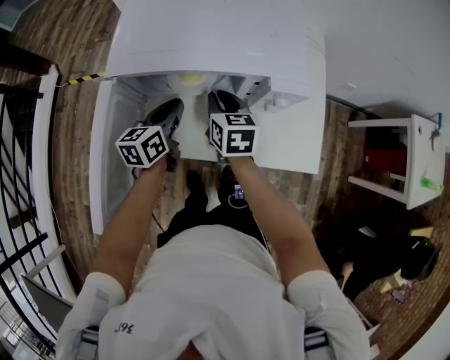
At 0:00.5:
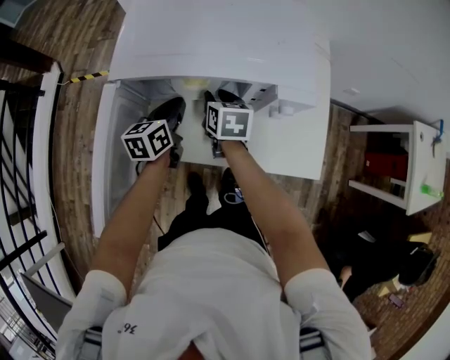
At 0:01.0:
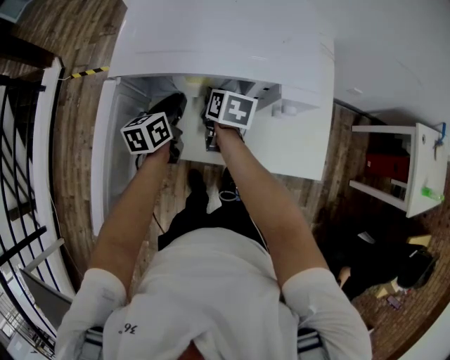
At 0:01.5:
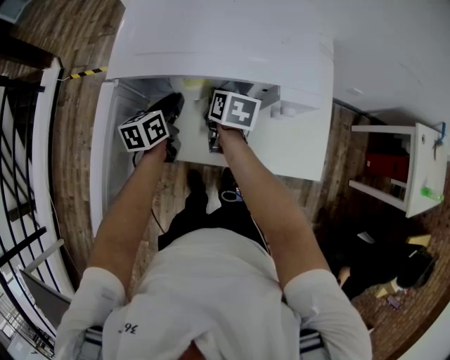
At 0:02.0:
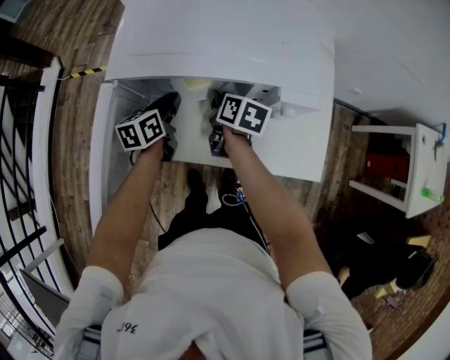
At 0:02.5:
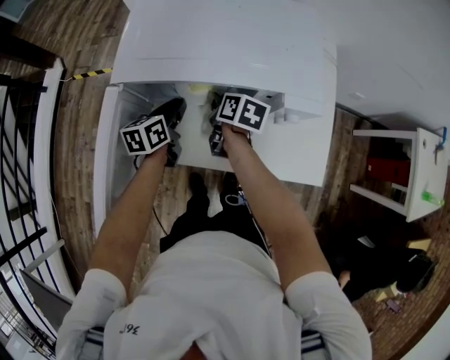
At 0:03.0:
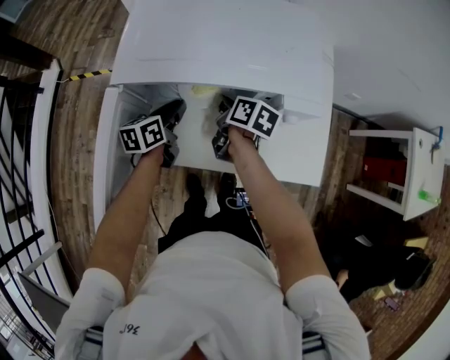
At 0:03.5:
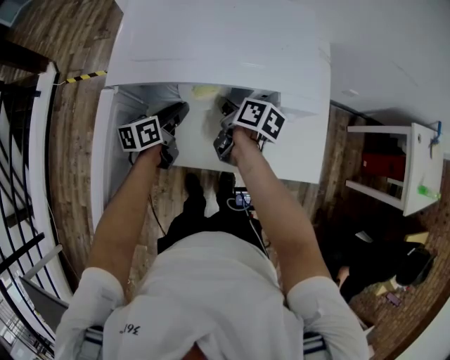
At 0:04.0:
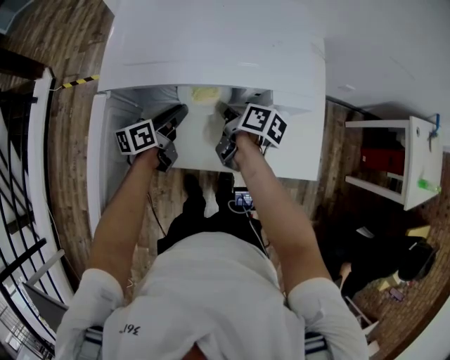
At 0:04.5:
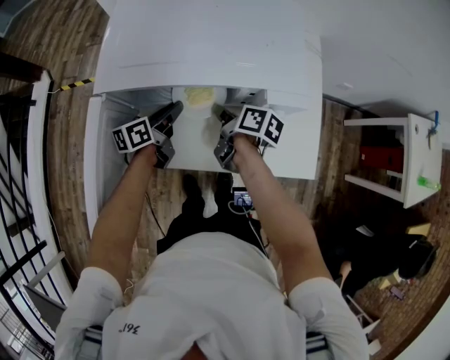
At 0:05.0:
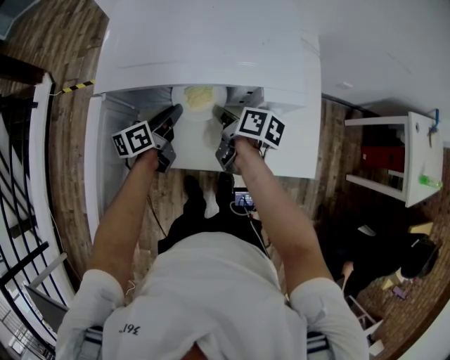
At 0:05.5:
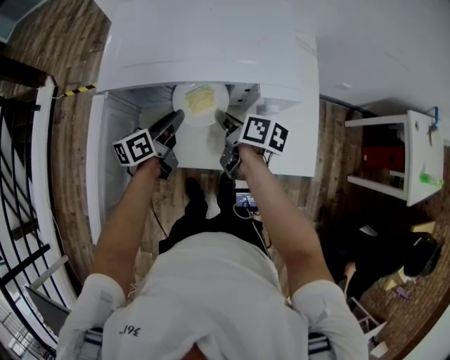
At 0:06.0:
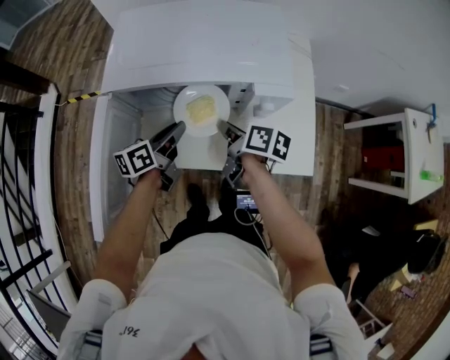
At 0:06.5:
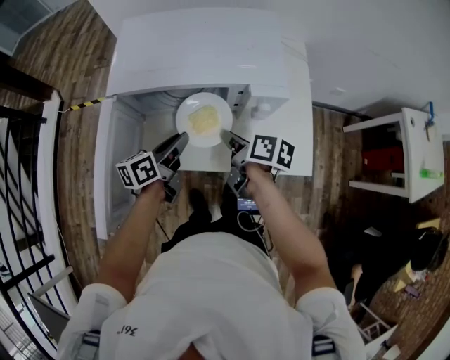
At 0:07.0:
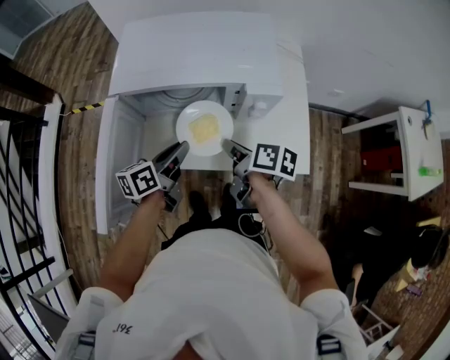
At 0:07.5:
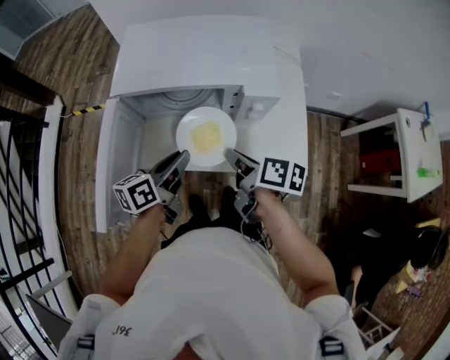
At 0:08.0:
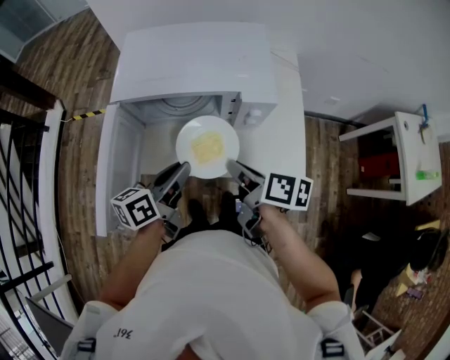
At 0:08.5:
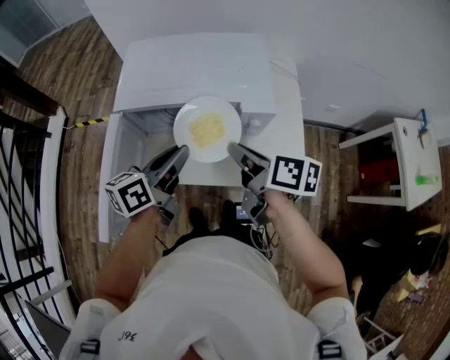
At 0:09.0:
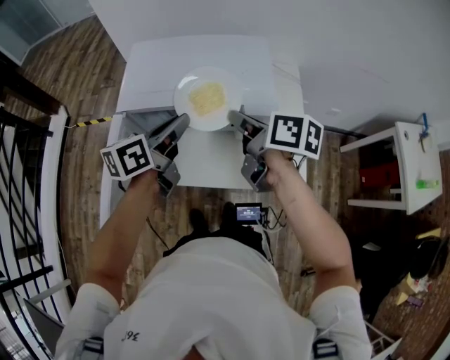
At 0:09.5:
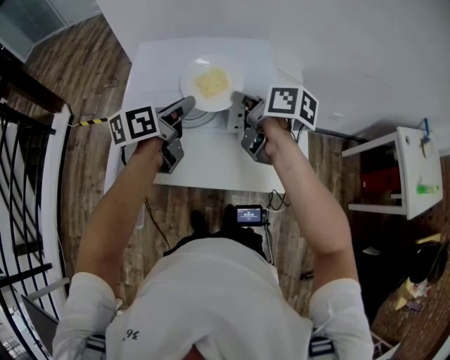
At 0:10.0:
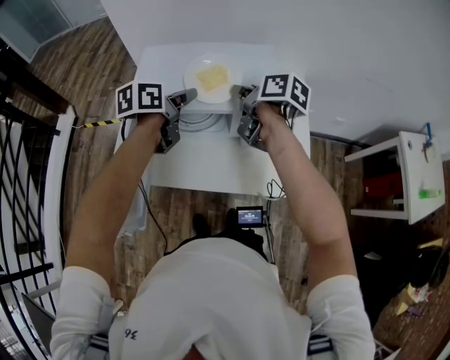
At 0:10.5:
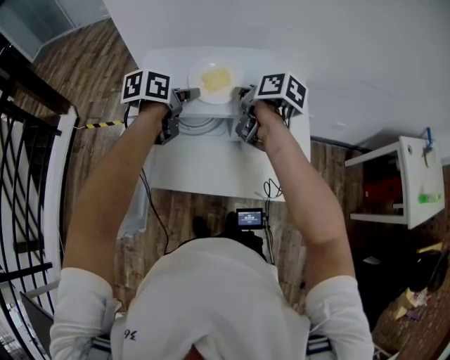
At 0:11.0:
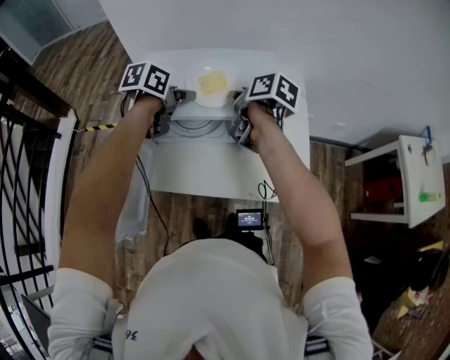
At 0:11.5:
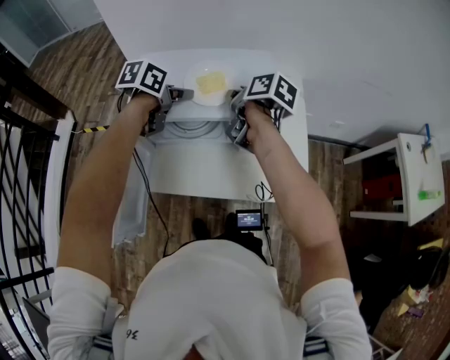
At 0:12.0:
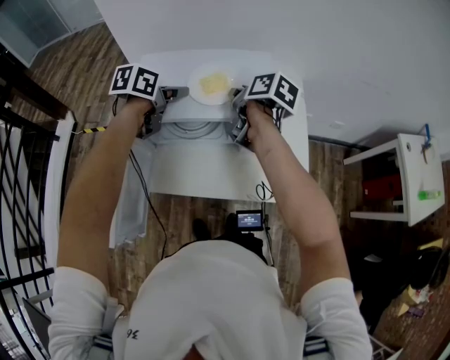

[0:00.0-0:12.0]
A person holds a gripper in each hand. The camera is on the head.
0:00.0 to 0:02.0: Both grippers travel together downward, some 5 cm. The right gripper swivels roughly 30 degrees.
0:02.0 to 0:04.0: The right gripper turns by roughly 20 degrees; the left gripper swivels some 20 degrees.
0:04.0 to 0:06.0: Both grippers travel together backward and upward, roughly 10 cm.
0:06.0 to 0:08.0: Both grippers travel together backward and upward, some 15 cm.
0:08.0 to 0:10.0: The two grippers go roughly 20 cm forward.

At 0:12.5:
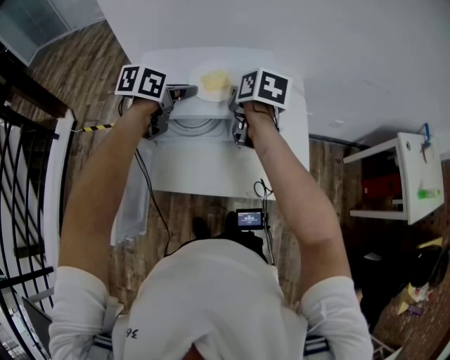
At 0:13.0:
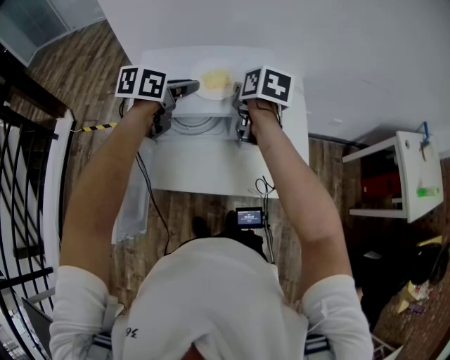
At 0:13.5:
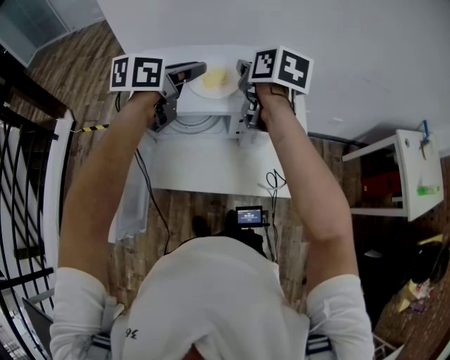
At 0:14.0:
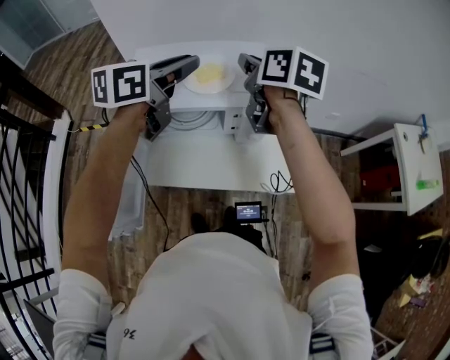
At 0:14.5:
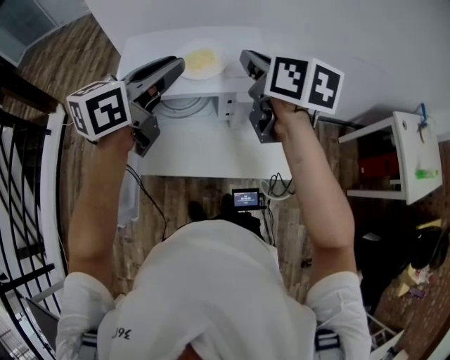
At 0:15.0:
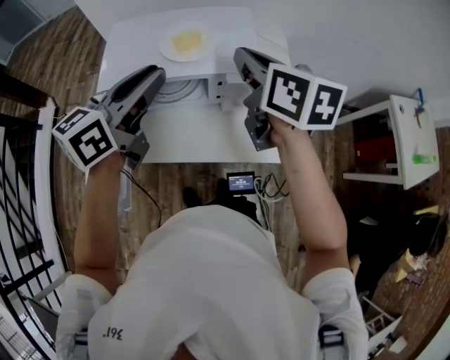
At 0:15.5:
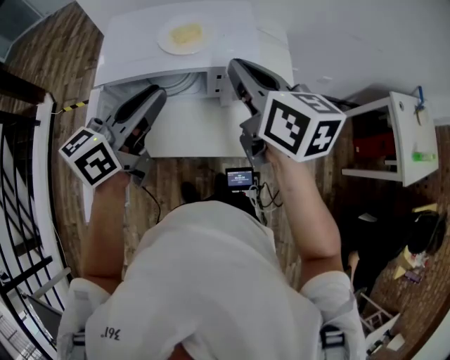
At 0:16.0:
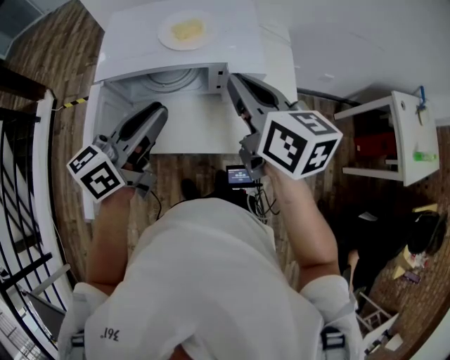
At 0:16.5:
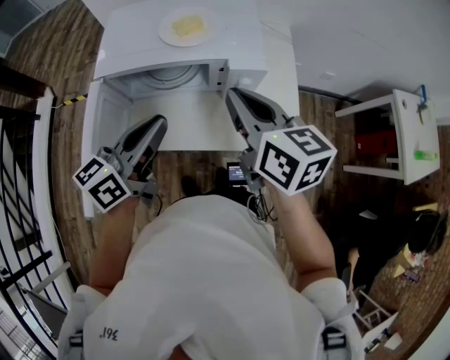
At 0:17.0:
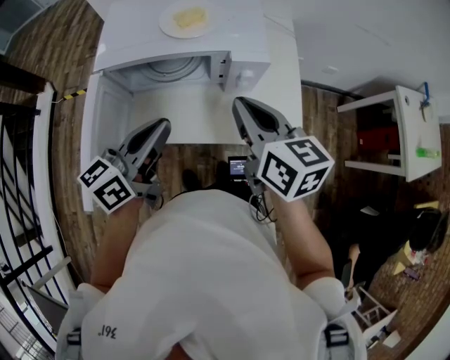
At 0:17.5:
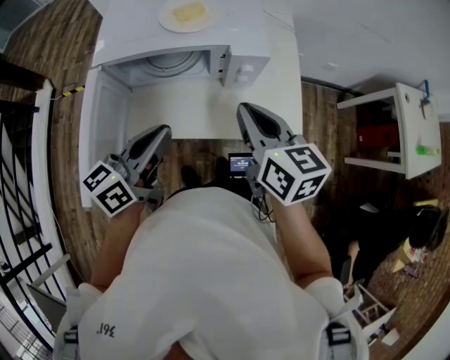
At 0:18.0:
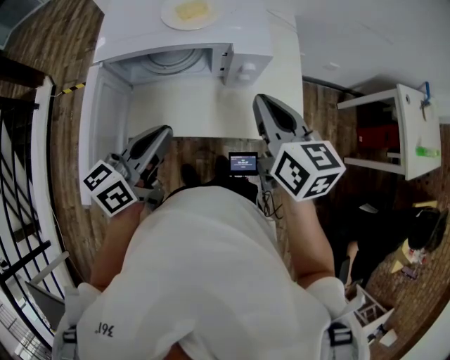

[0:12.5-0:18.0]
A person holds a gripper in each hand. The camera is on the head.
0:12.5 to 0:14.5: The grippers both shift upward and backward by about 15 cm. The left gripper turns by roughly 30 degrees. Meanwhile the right gripper rotates approximately 20 degrees.
0:14.5 to 0:16.0: The left gripper goes approximately 15 cm backward and downward. The right gripper is displaced backward by approximately 10 cm.
0:16.0 to 0:18.0: The right gripper is displaced downward, to the right and backward by roughly 10 cm; the left gripper travels backward and downward by approximately 10 cm.

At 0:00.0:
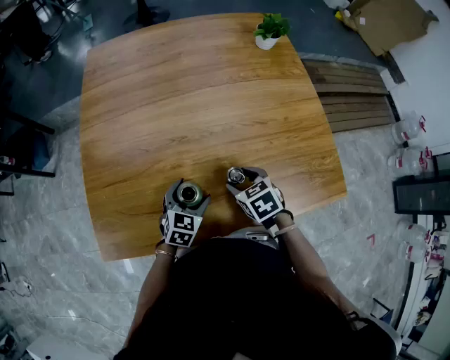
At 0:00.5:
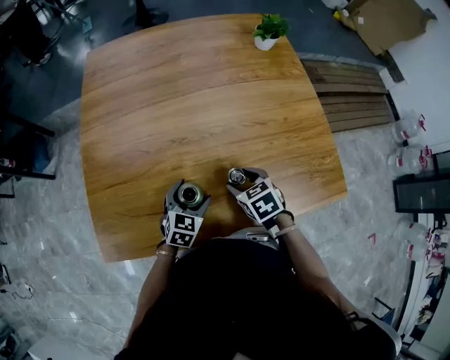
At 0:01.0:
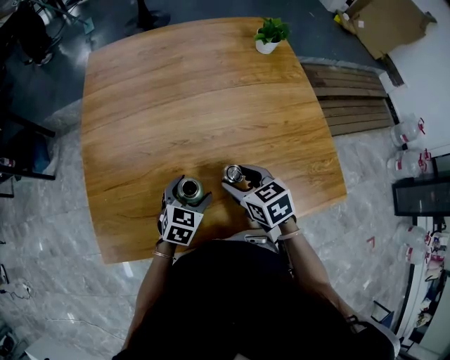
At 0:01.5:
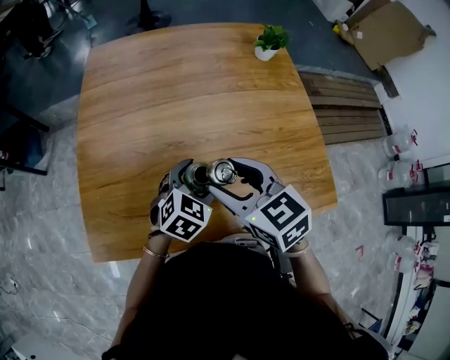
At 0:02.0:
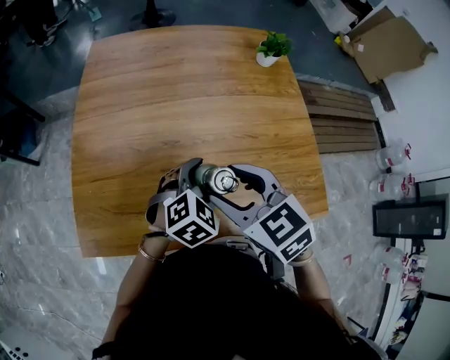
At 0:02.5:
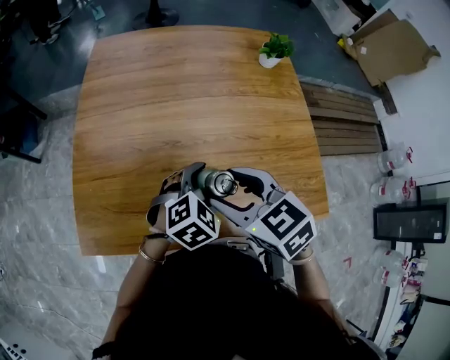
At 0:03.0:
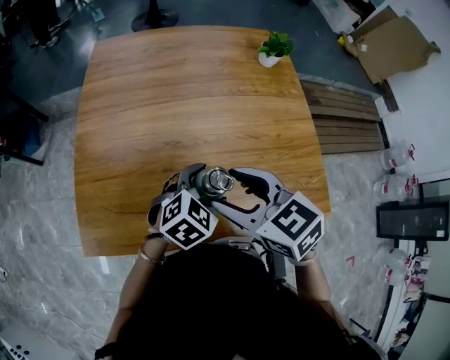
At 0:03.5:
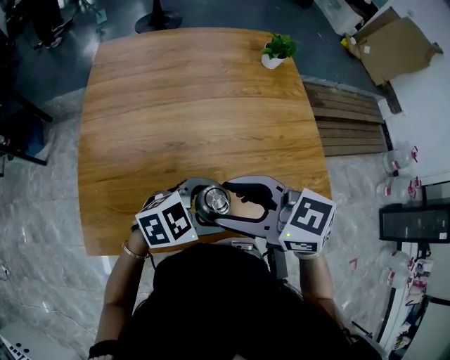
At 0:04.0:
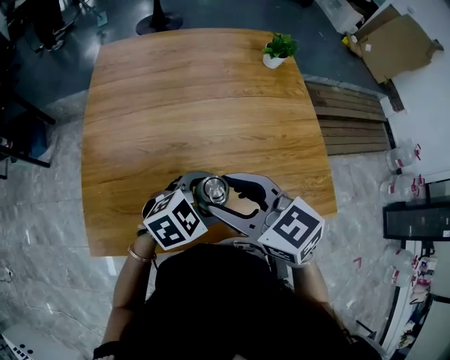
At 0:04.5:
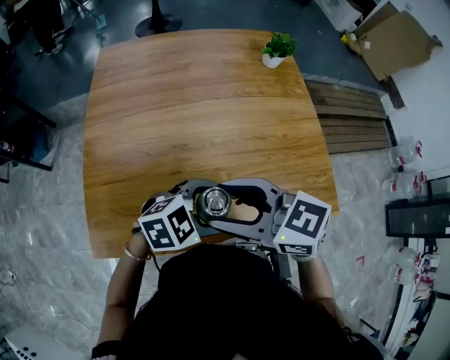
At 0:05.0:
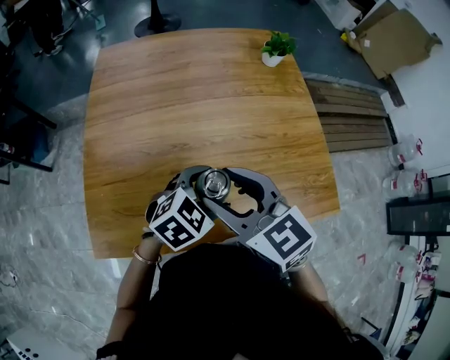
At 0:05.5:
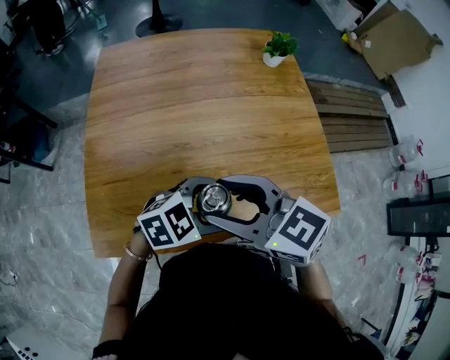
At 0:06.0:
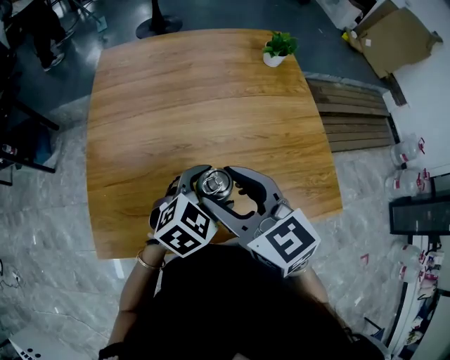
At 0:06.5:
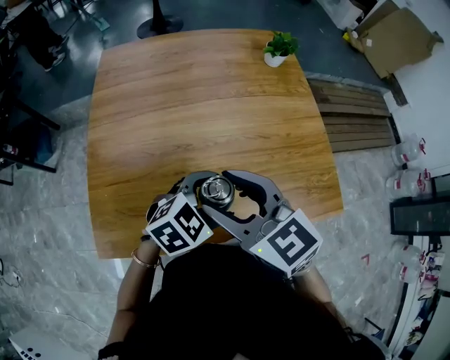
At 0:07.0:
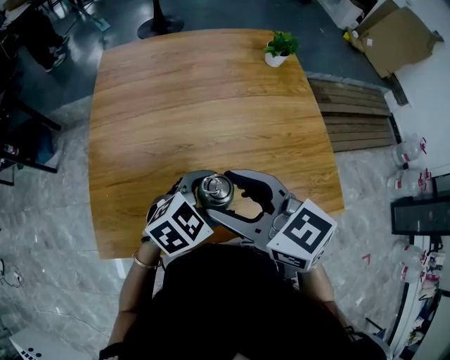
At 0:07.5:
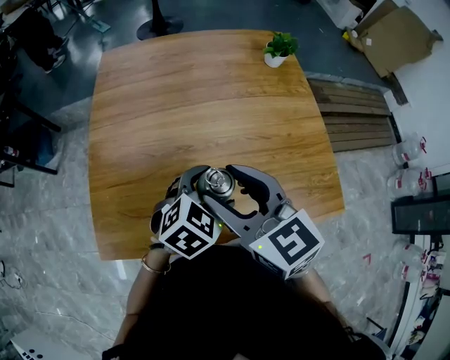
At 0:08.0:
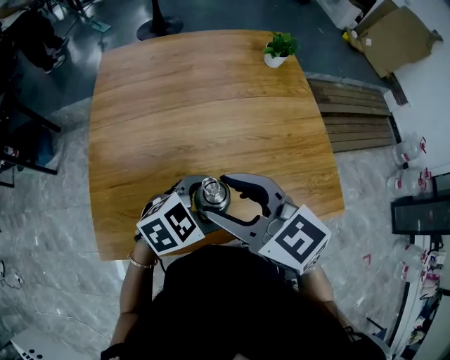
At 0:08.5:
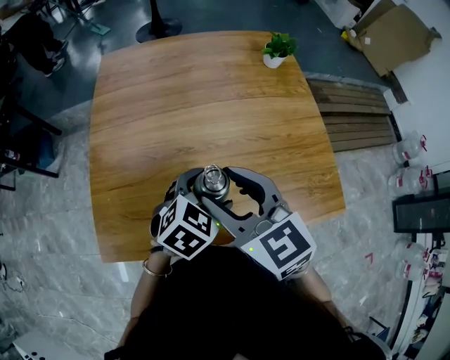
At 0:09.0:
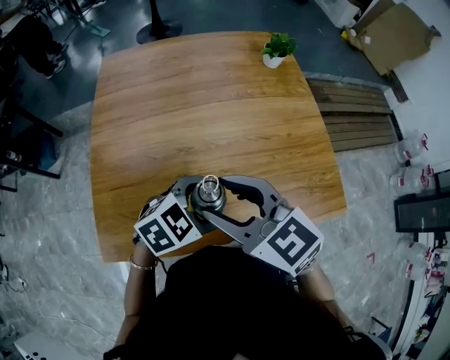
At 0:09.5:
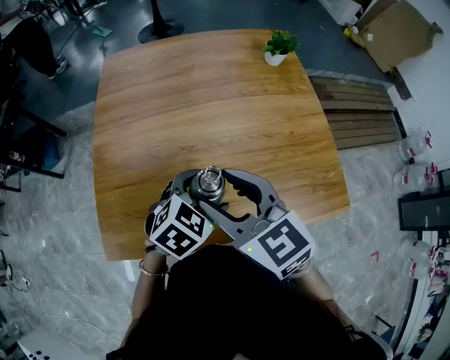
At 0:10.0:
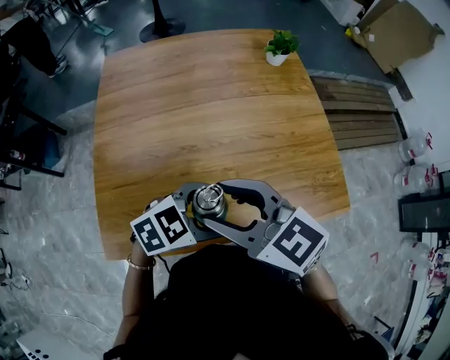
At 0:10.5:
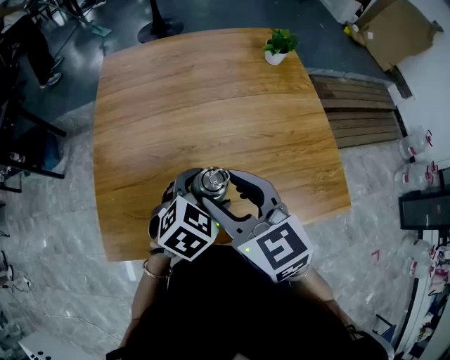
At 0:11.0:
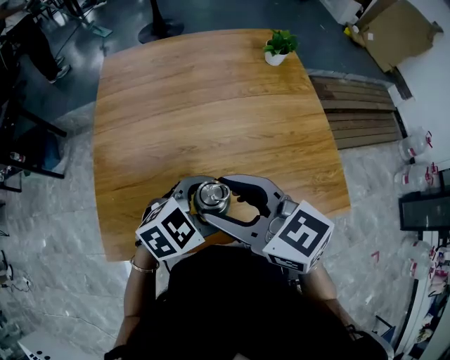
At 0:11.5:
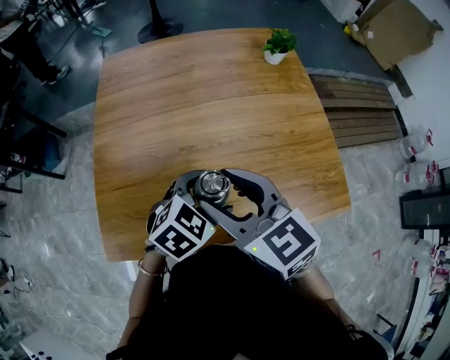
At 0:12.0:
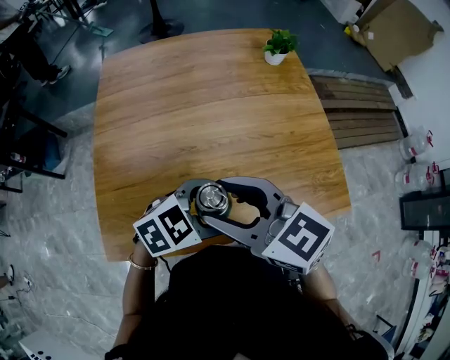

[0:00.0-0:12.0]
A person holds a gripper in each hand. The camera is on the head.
0:00.0 to 0:02.0: The left gripper moves upward and to the right, some 15 cm, and changes its angle by roughly 20 degrees. The right gripper goes some 20 cm upward, and changes its angle by some 30 degrees.
0:02.0 to 0:04.0: The left gripper changes its angle by about 20 degrees.
0:04.0 to 0:08.0: The grippers stay close to where they were, moving slightly.
